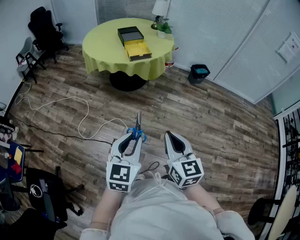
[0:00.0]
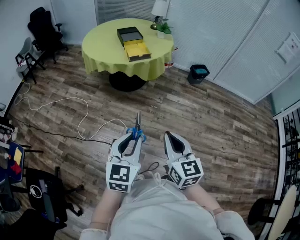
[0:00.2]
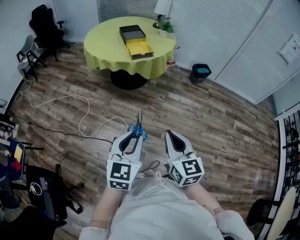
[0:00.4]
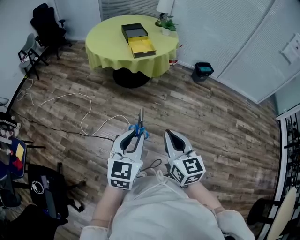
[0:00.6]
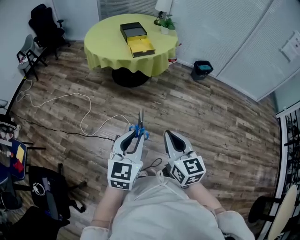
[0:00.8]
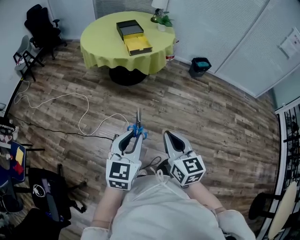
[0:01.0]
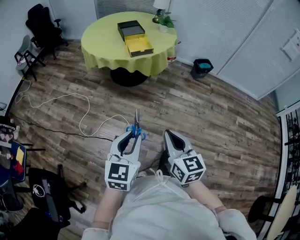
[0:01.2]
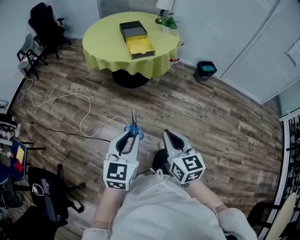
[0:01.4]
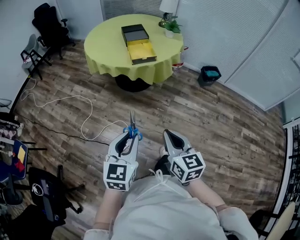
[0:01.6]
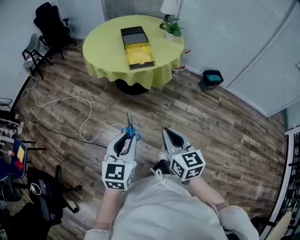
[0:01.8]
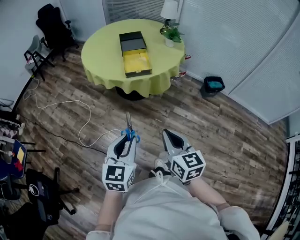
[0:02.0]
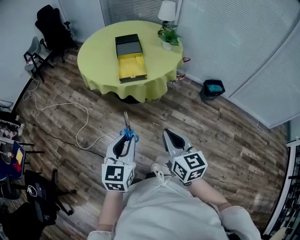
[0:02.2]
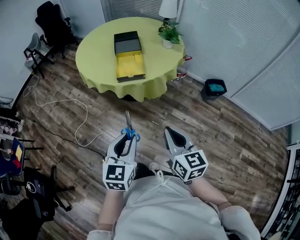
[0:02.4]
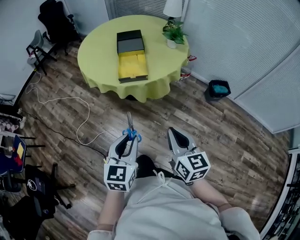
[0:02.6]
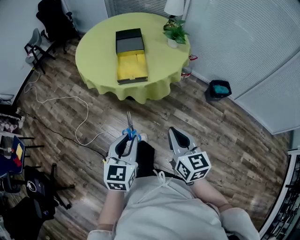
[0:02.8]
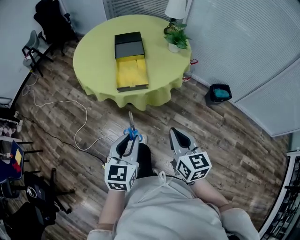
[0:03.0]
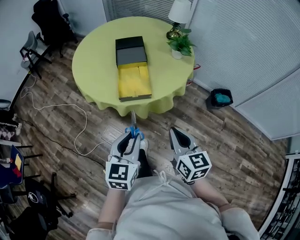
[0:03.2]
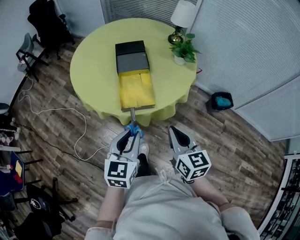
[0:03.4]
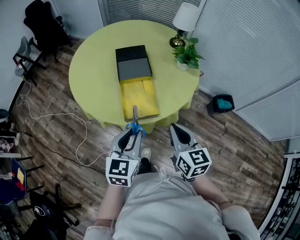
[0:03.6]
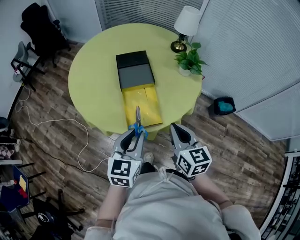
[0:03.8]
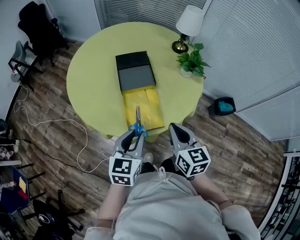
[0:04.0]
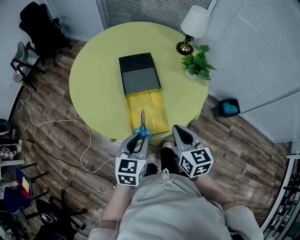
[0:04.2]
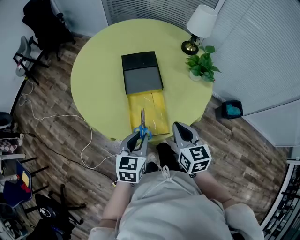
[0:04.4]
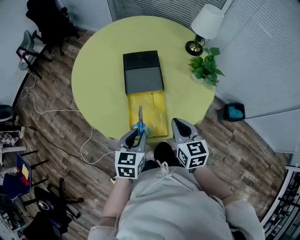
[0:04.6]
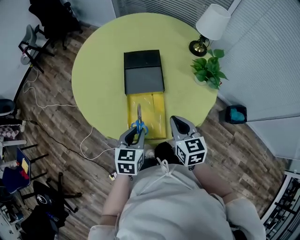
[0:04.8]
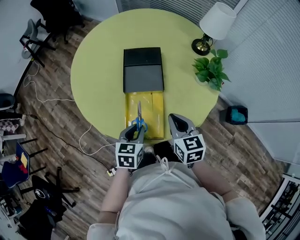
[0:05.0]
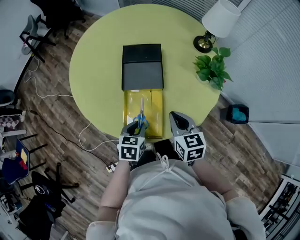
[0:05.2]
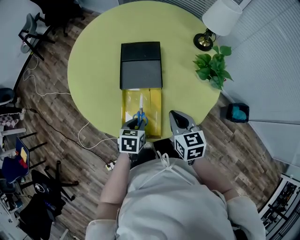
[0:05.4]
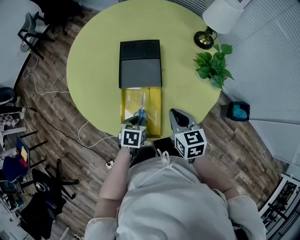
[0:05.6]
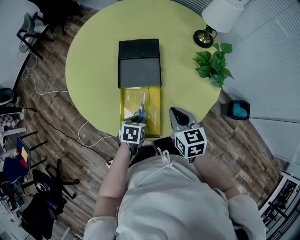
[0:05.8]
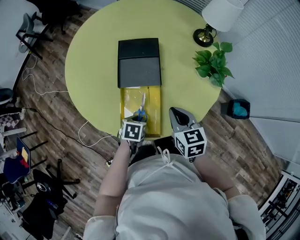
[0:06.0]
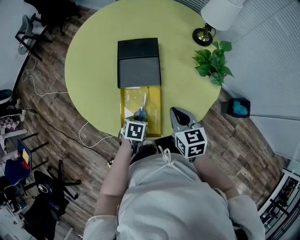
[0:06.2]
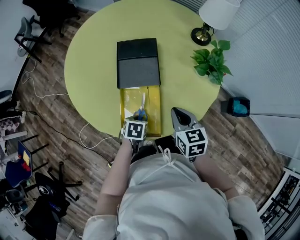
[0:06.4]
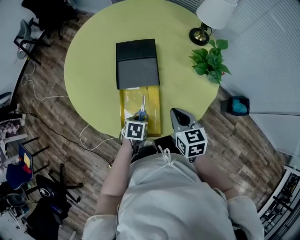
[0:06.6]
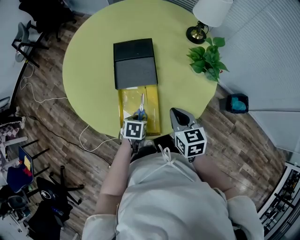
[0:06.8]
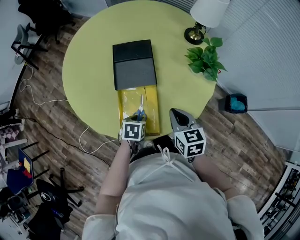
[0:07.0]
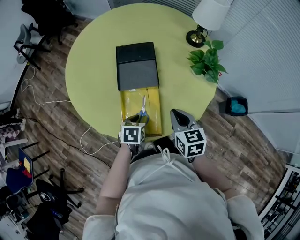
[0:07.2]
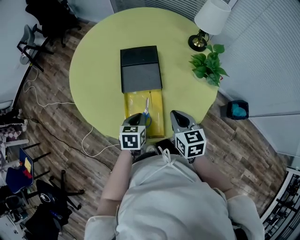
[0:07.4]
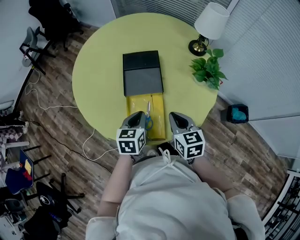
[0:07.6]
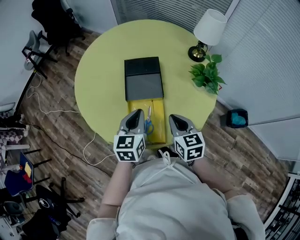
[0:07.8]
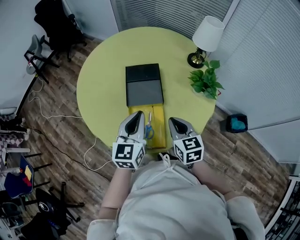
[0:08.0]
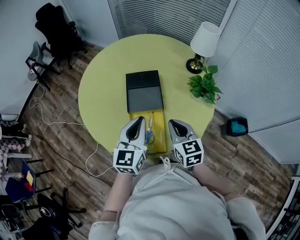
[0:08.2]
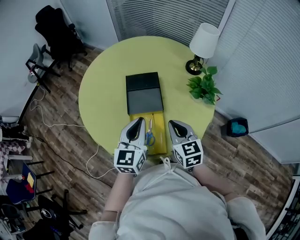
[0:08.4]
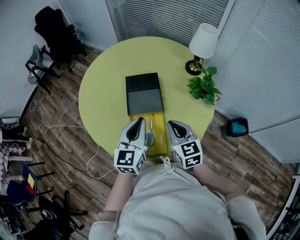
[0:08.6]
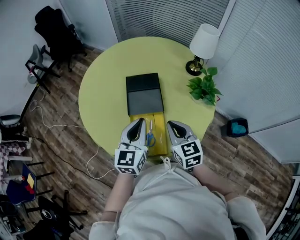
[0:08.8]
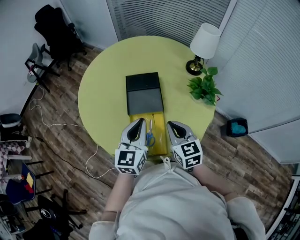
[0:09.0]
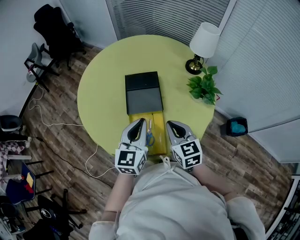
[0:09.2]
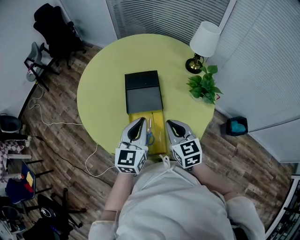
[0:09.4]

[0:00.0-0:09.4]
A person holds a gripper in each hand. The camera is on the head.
0:00.0 to 0:01.6: The two grippers go some 15 cm forward.
0:01.6 to 0:03.2: The pair of grippers is taken forward and to the right, approximately 40 cm.
0:03.2 to 0:04.8: The two grippers go approximately 35 cm forward.
0:04.8 to 0:06.2: The right gripper changes place by roughly 5 cm. The left gripper shifts about 15 cm downward, and angles its fingers downward, by roughly 30 degrees.
0:06.2 to 0:07.8: The left gripper shifts approximately 20 cm upward, and points its fingers roughly 50 degrees further upward. Meanwhile the right gripper moves roughly 5 cm.
0:07.8 to 0:09.4: The left gripper shifts approximately 5 cm upward.

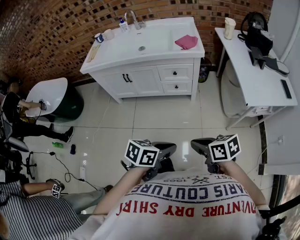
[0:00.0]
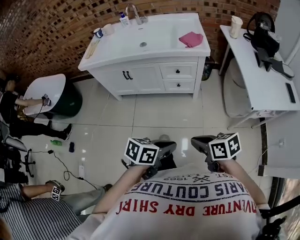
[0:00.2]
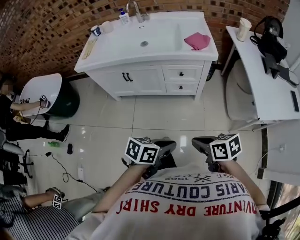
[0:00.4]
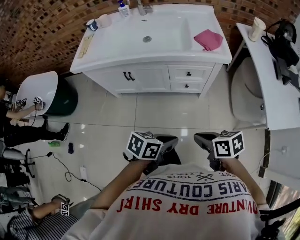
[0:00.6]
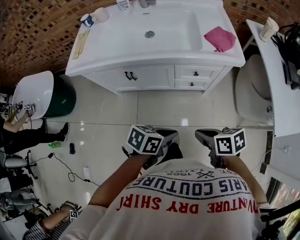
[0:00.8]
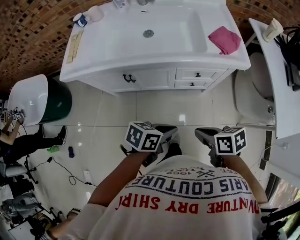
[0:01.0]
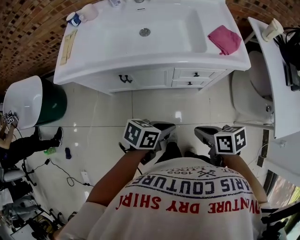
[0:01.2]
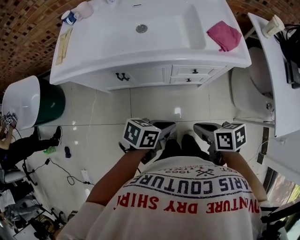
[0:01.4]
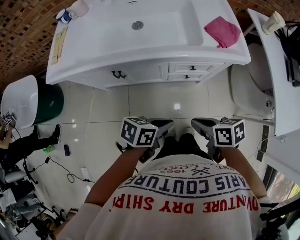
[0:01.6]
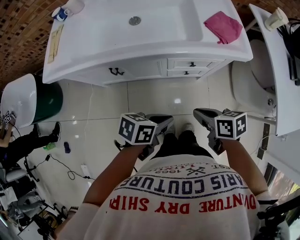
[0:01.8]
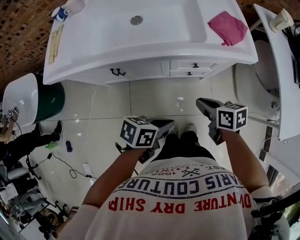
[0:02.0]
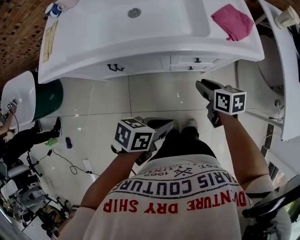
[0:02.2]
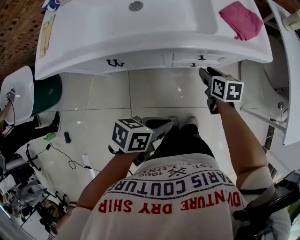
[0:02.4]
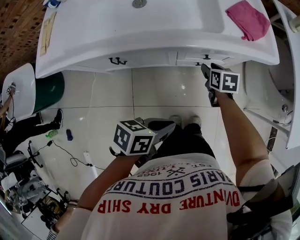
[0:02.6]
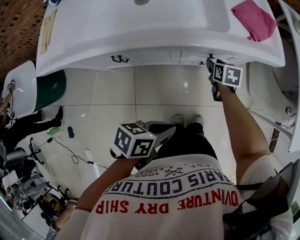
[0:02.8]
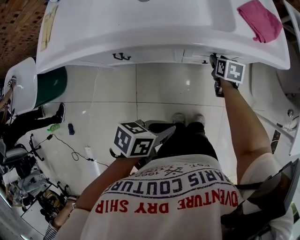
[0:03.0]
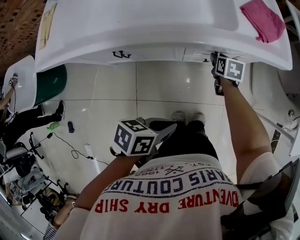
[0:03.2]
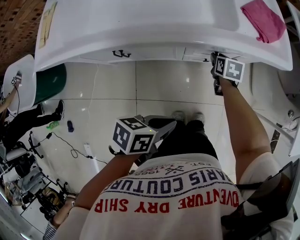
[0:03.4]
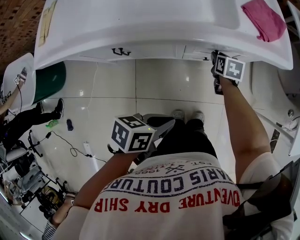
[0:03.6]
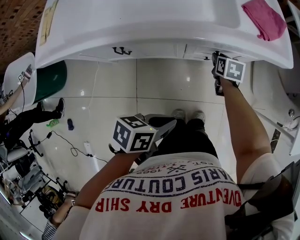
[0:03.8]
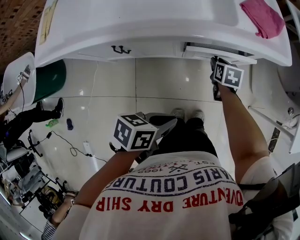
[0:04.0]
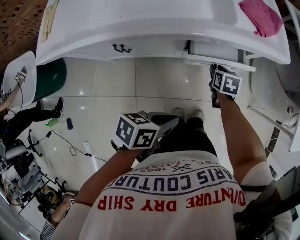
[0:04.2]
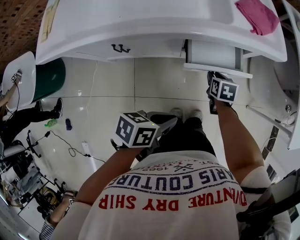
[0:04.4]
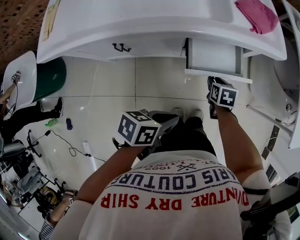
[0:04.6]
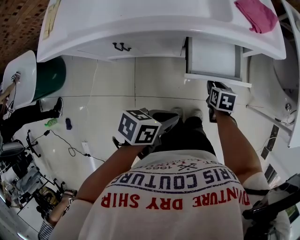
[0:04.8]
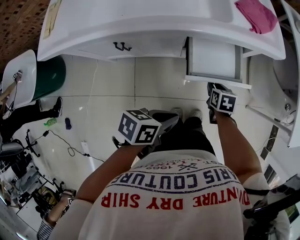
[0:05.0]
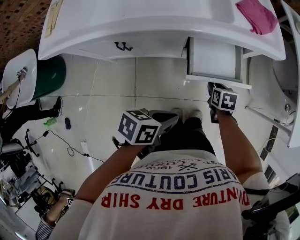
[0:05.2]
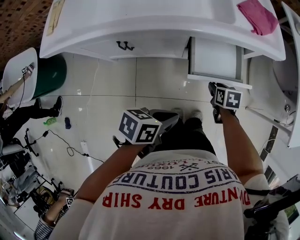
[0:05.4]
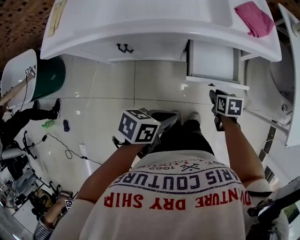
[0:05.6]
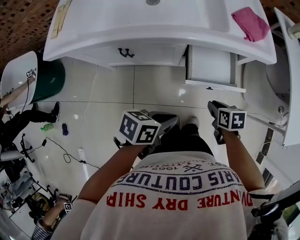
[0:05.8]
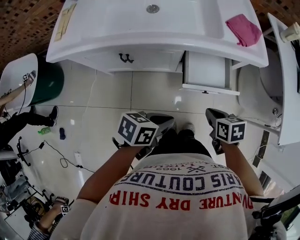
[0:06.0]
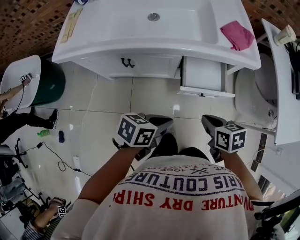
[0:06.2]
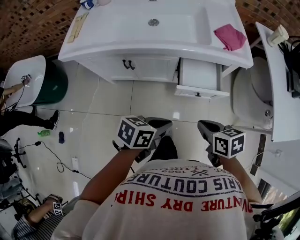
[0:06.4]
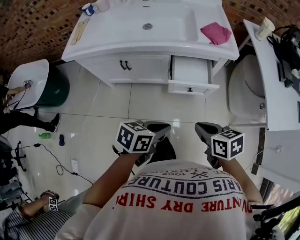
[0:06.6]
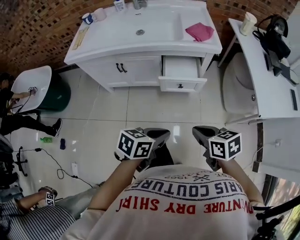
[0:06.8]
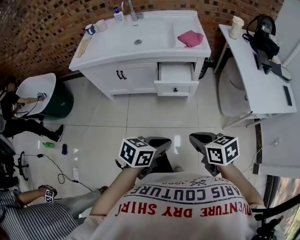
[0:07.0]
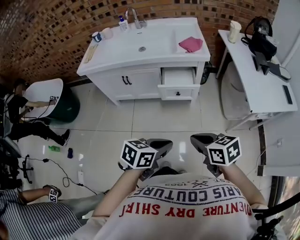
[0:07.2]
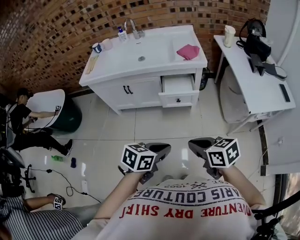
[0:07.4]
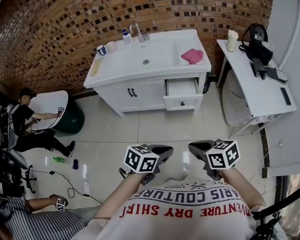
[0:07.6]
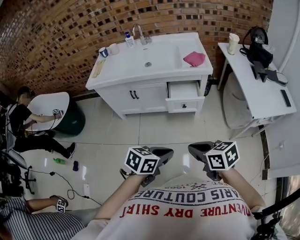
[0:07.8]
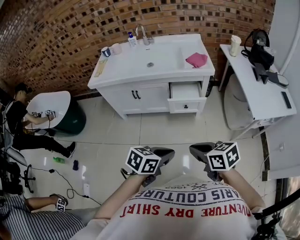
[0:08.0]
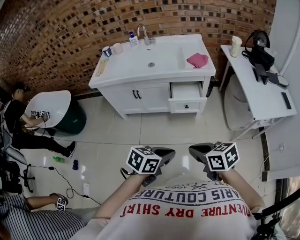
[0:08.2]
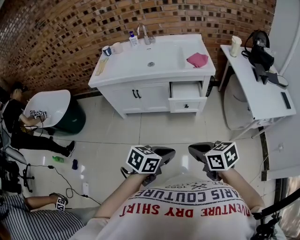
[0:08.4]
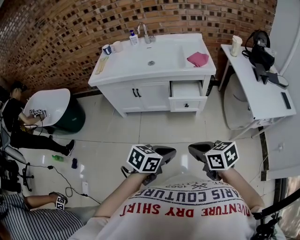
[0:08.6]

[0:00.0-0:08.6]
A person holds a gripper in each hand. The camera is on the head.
0:00.0 to 0:01.4: Both grippers are carried about 40 cm.
0:01.4 to 0:02.8: The right gripper moves some 35 cm, turns by approximately 30 degrees, and opens up, while the left gripper heads downward, covering some 5 cm.
0:02.8 to 0:04.4: The right gripper moves backward, roughly 10 cm.
0:04.4 to 0:05.8: The right gripper is displaced backward and upward by about 15 cm.
0:05.8 to 0:07.2: The left gripper goes approximately 40 cm backward, to the right and upward, and rotates approximately 20 degrees; the right gripper is displaced backward and upward by roughly 50 cm, and rotates some 30 degrees.
0:07.2 to 0:08.6: The grippers both shift to the left by roughly 5 cm.

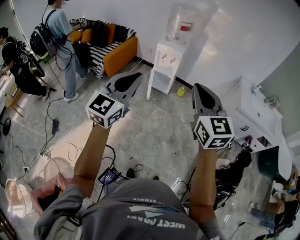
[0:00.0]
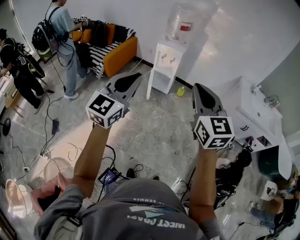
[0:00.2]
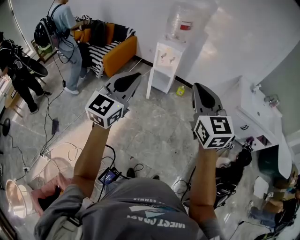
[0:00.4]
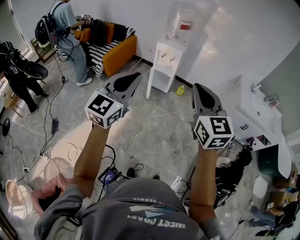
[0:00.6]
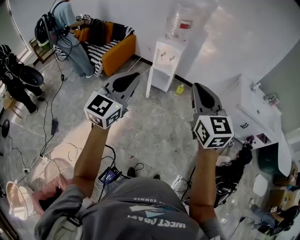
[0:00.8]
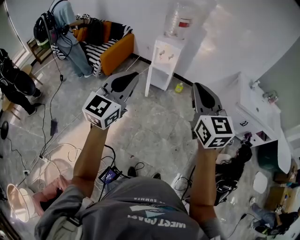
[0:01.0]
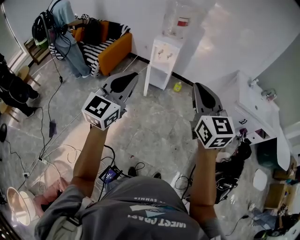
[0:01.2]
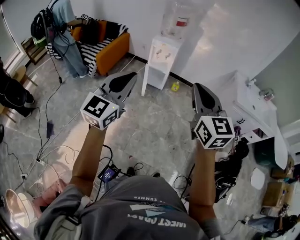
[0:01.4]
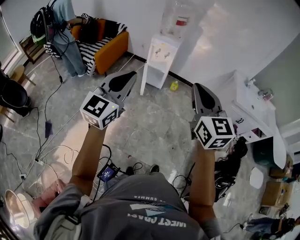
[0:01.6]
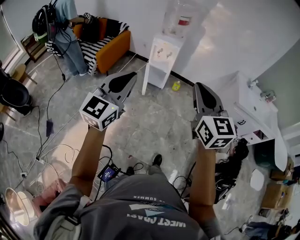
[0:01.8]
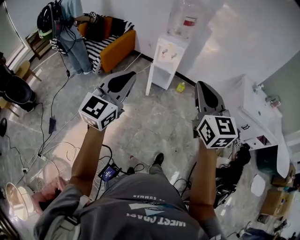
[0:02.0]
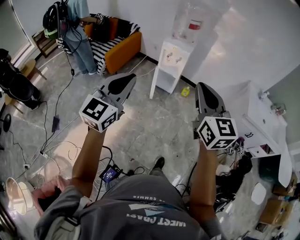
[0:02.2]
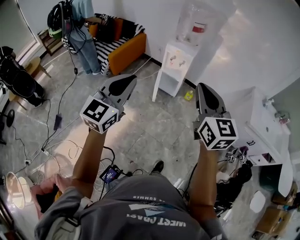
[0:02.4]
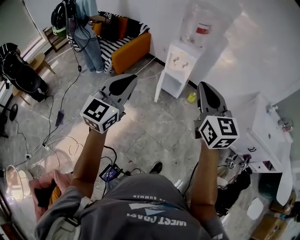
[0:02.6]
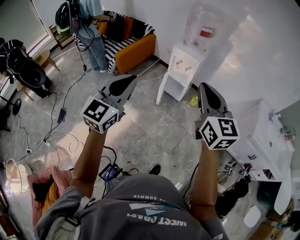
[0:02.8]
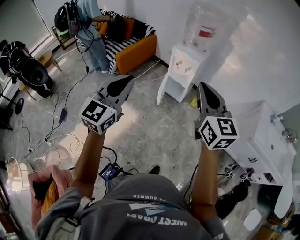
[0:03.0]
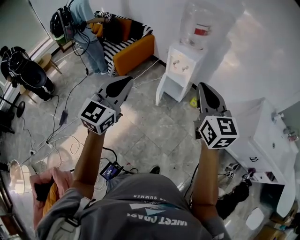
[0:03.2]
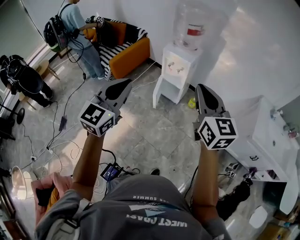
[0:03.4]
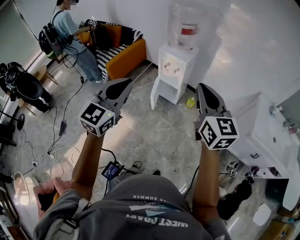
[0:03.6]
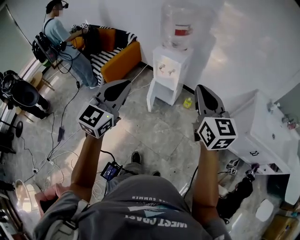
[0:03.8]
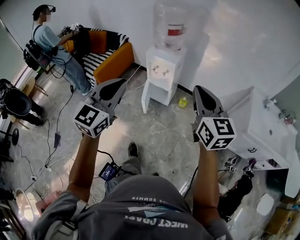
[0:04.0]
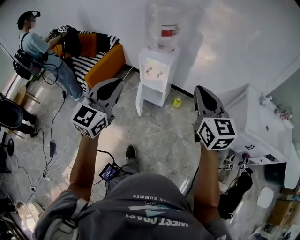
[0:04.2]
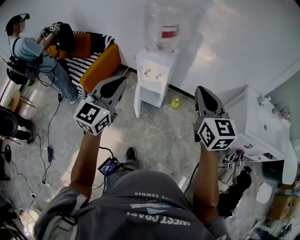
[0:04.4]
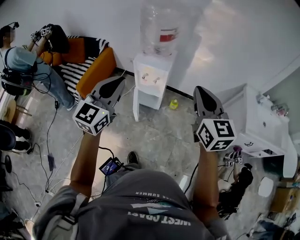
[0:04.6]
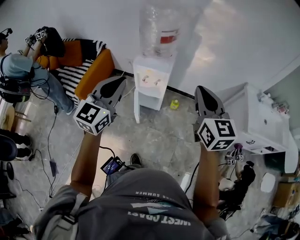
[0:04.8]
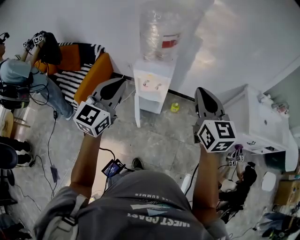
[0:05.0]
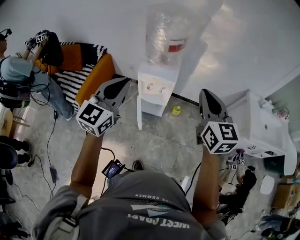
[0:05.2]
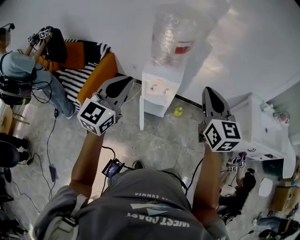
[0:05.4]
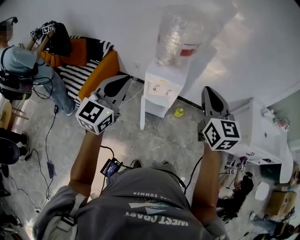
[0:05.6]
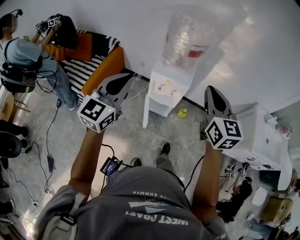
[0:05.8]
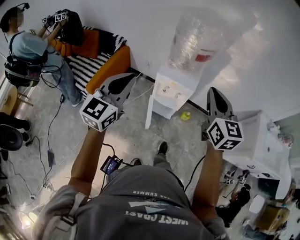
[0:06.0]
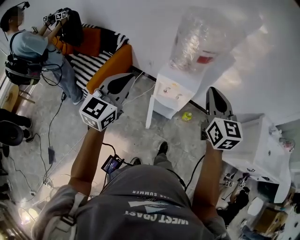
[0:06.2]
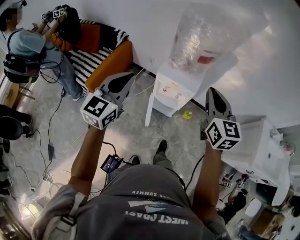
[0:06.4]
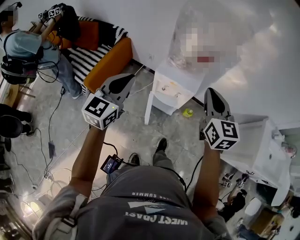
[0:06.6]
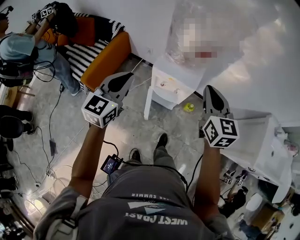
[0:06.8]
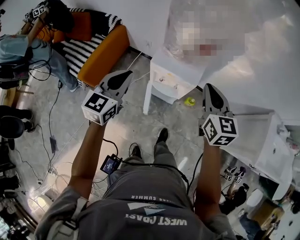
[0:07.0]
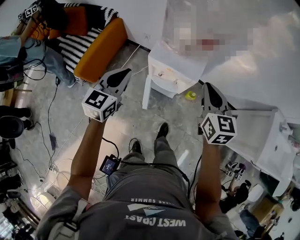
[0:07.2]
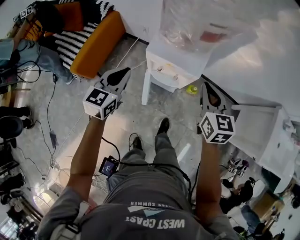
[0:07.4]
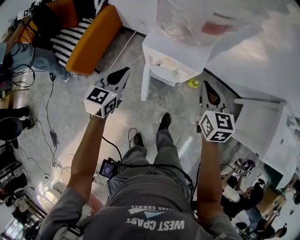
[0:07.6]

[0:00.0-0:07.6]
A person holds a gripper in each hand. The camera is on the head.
0:00.0 to 0:01.6: The left gripper moves roughly 5 cm.
0:01.6 to 0:03.0: The left gripper goes about 15 cm forward and to the right; the right gripper goes roughly 20 cm forward.
0:03.0 to 0:04.6: The two grippers go some 25 cm forward. The right gripper rotates approximately 20 degrees.
0:04.6 to 0:06.0: The right gripper goes about 20 cm forward and to the left; the left gripper travels to the left and forward by roughly 20 cm.
0:06.0 to 0:07.6: Both grippers move downward and forward, about 35 cm. The right gripper rotates some 20 degrees. Meanwhile the left gripper turns by about 30 degrees.
